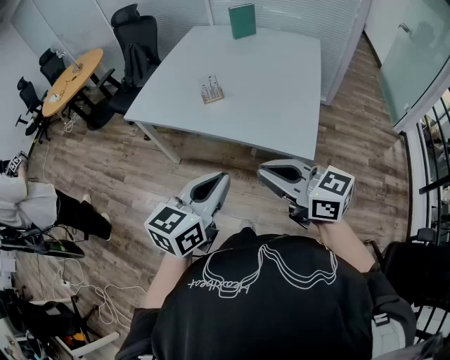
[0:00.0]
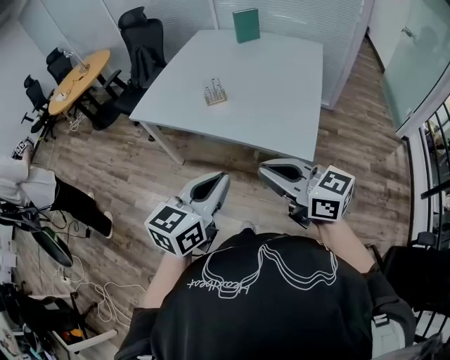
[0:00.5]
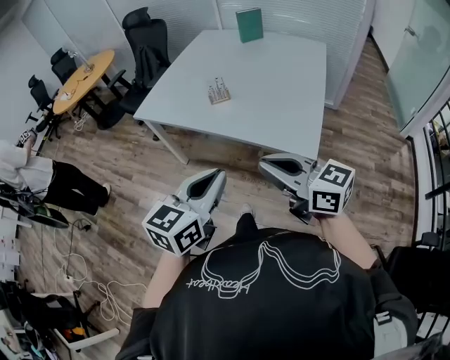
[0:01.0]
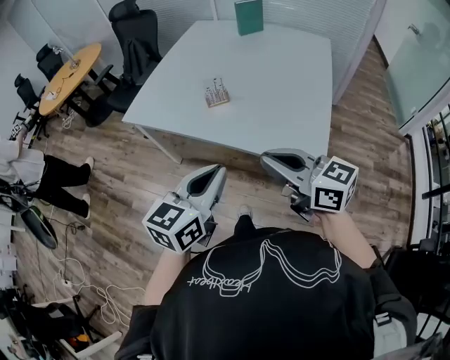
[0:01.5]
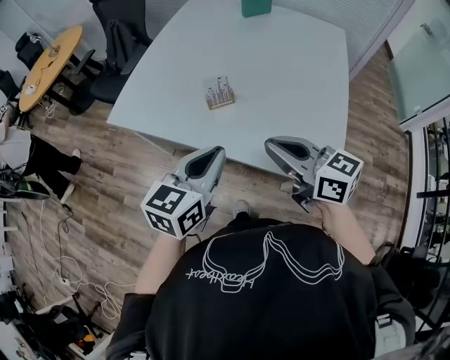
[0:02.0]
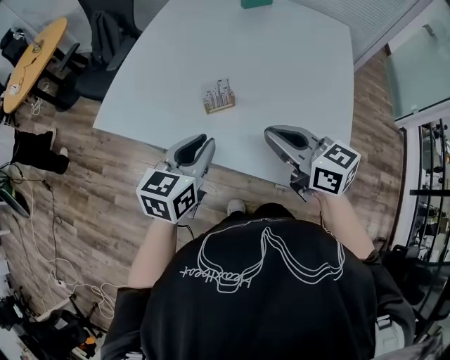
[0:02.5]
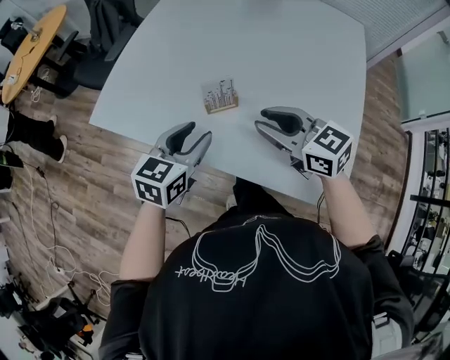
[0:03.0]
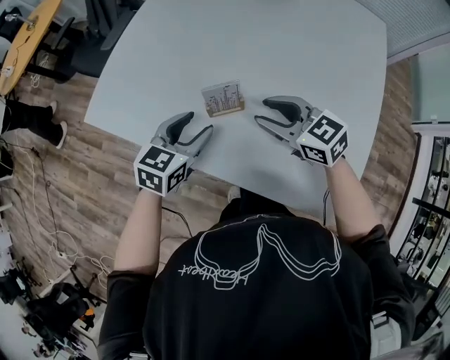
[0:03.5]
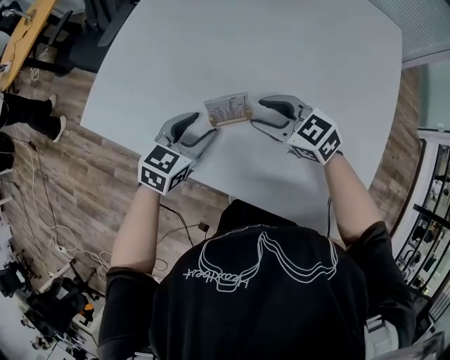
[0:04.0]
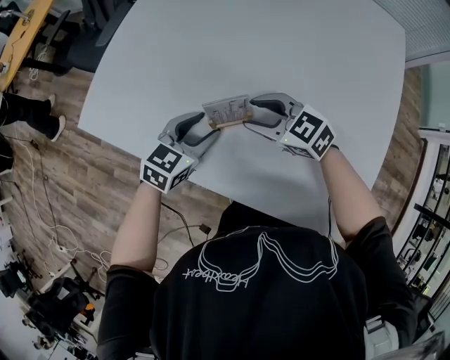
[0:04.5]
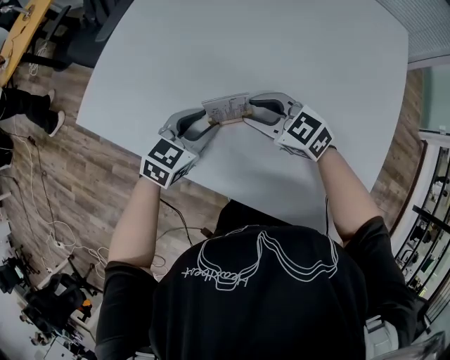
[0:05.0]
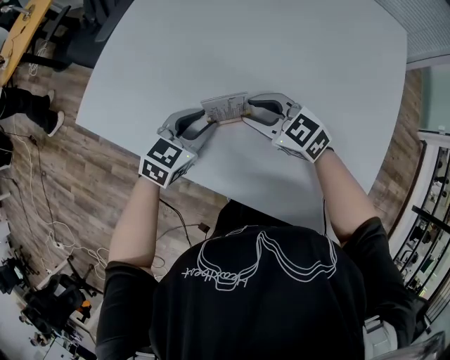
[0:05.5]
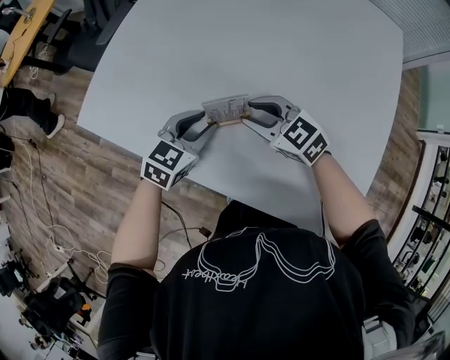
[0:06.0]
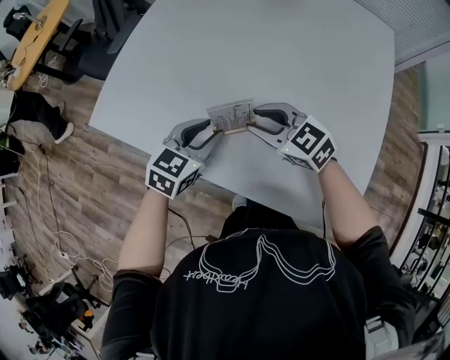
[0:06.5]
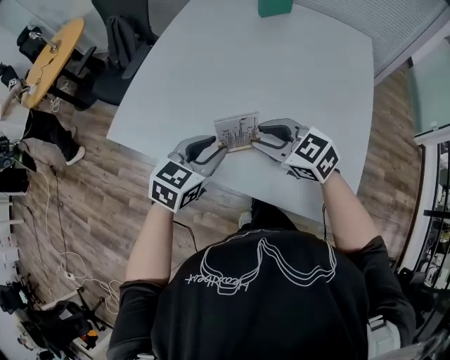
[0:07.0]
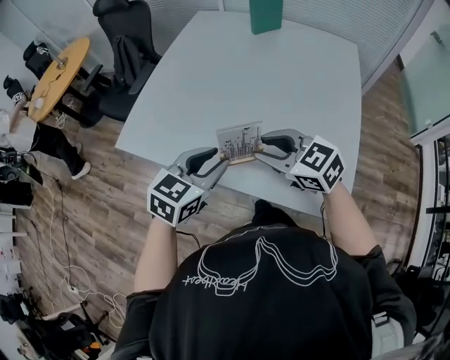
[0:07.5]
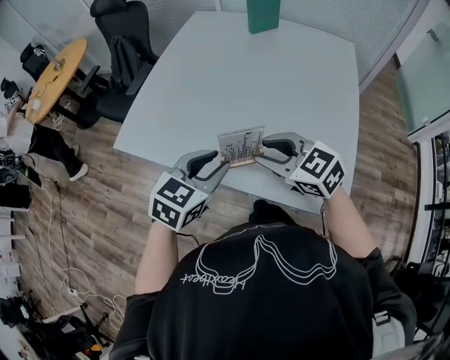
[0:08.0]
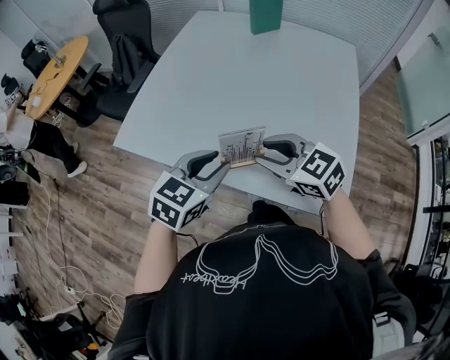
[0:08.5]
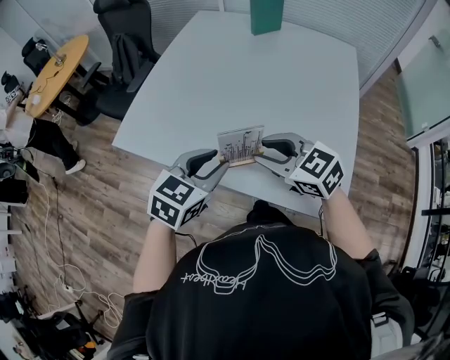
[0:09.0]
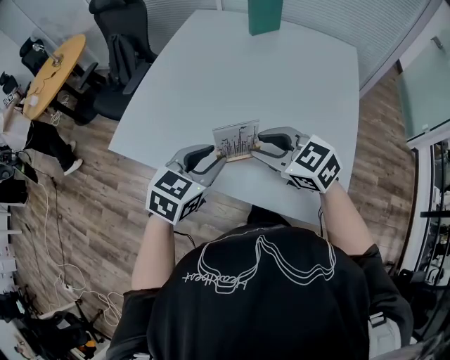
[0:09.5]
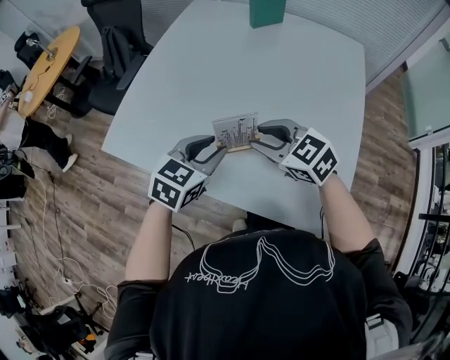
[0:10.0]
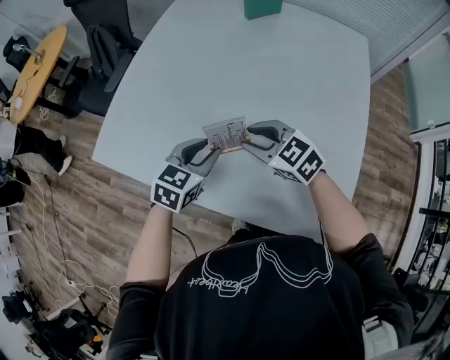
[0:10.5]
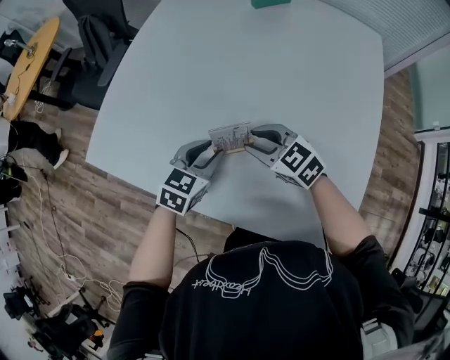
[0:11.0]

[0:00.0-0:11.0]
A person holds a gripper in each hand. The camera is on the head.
0:00.0 to 0:02.0: Both grippers travel together forward, about 25 cm.
0:02.0 to 0:03.5: The grippers both shift forward and downward by about 30 cm. The left gripper opens. Meanwhile the right gripper rotates some 30 degrees, and opens its fingers.
0:03.5 to 0:05.5: The left gripper shifts approximately 5 cm downward. The right gripper moves downward and forward, some 10 cm.
0:05.5 to 0:07.5: Both grippers travel together upward and backward, some 25 cm.
0:07.5 to 0:09.0: Both grippers stay about where they are.
0:09.0 to 0:11.0: The two grippers go some 25 cm forward and downward.

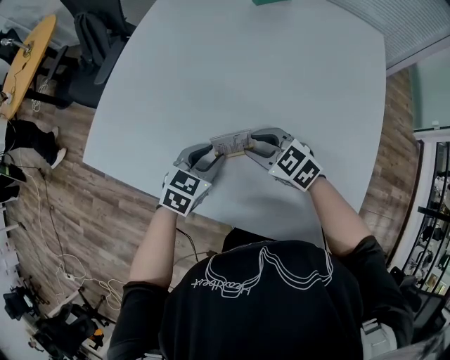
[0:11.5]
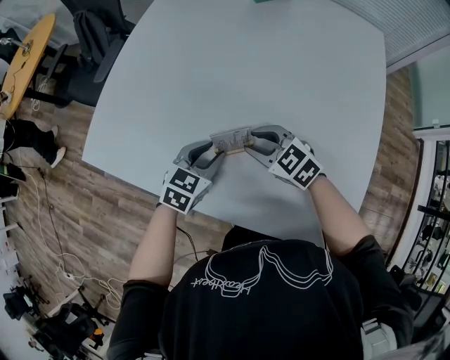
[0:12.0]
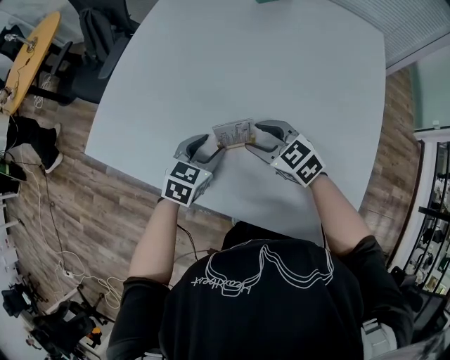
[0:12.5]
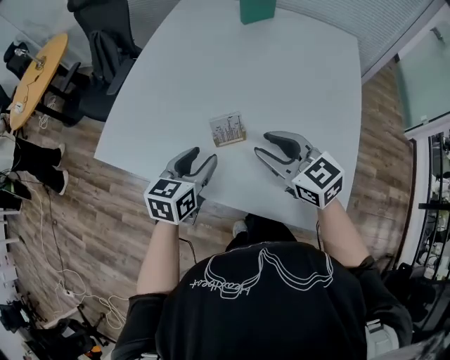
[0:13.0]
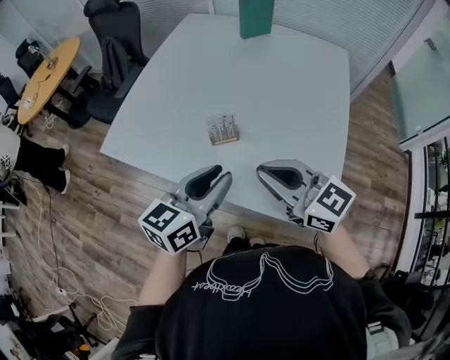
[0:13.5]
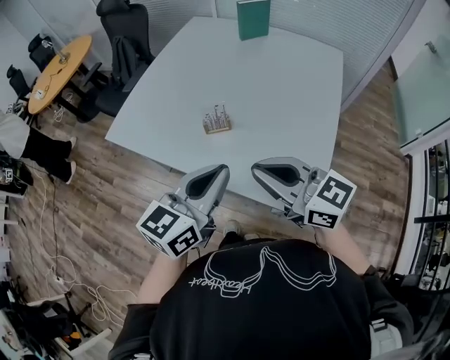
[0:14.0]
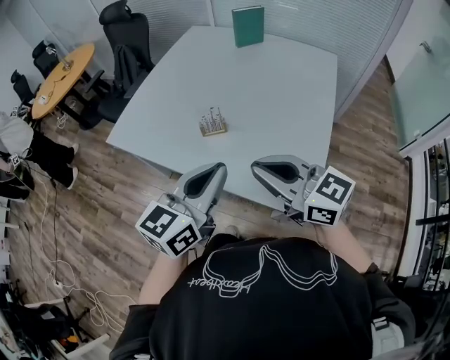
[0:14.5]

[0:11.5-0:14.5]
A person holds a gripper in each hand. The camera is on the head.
0:11.5 to 0:13.0: The two grippers go roughly 15 cm upward and backward. The left gripper rotates about 20 degrees. Meanwhile the right gripper turns by approximately 20 degrees.
0:13.0 to 0:14.5: The right gripper moves backward and upward, some 25 cm, turns by about 20 degrees, and closes, while the left gripper heads backward, upward and to the right, covering approximately 30 cm, rotates about 20 degrees, and closes.

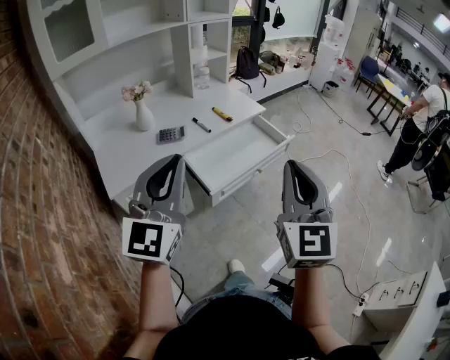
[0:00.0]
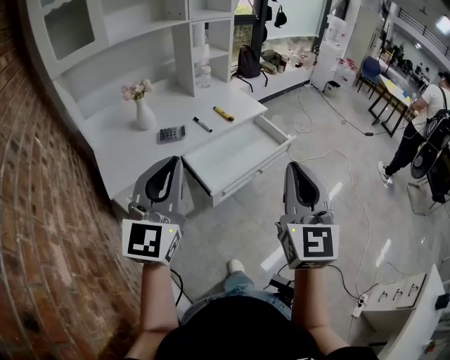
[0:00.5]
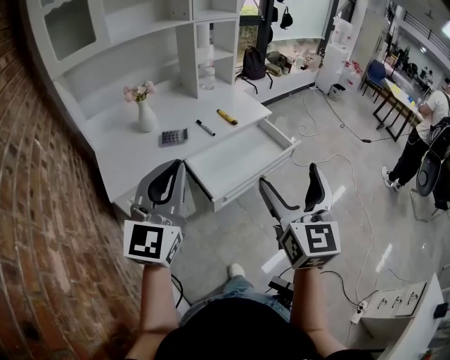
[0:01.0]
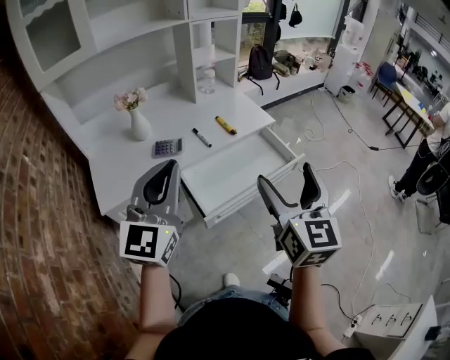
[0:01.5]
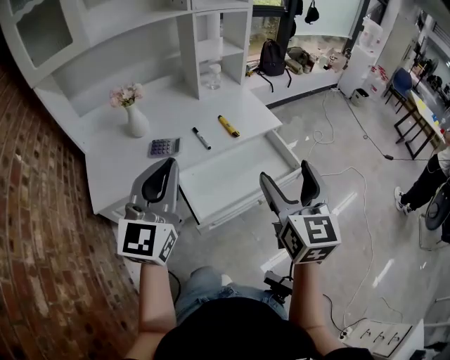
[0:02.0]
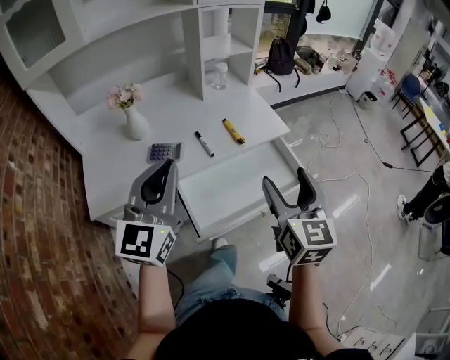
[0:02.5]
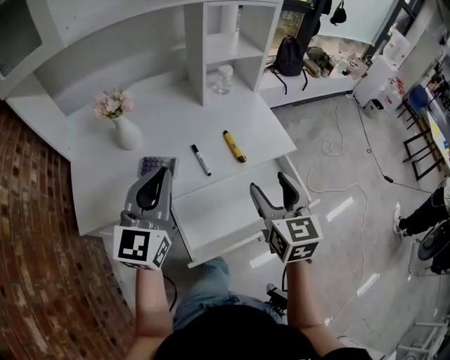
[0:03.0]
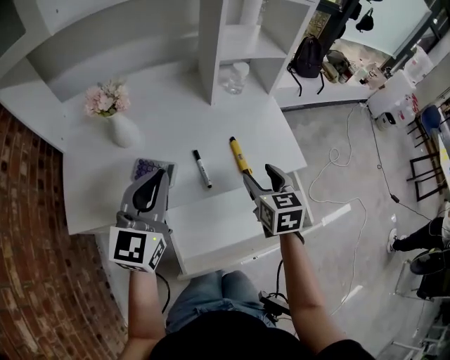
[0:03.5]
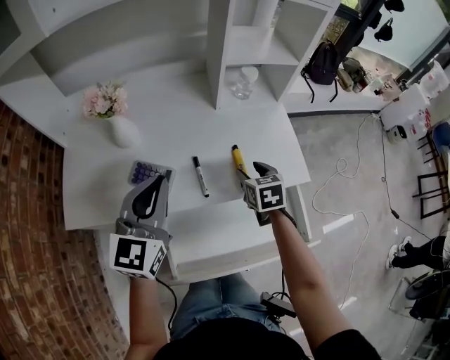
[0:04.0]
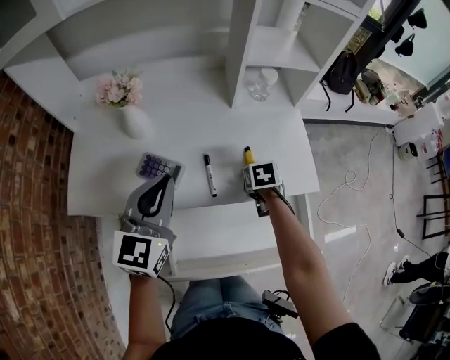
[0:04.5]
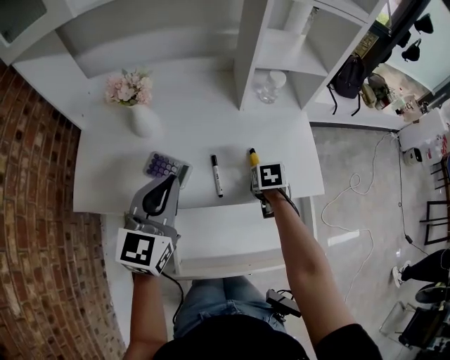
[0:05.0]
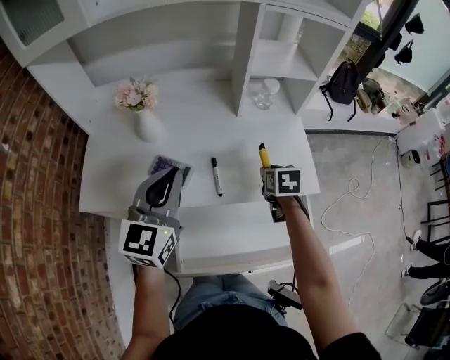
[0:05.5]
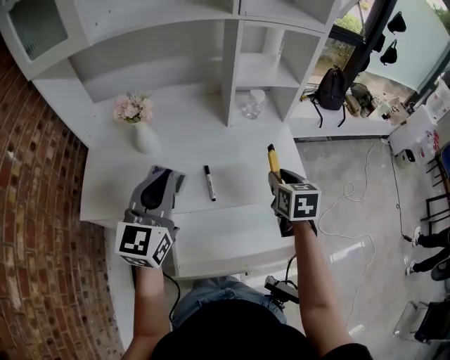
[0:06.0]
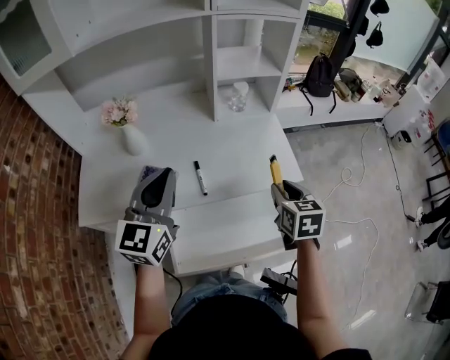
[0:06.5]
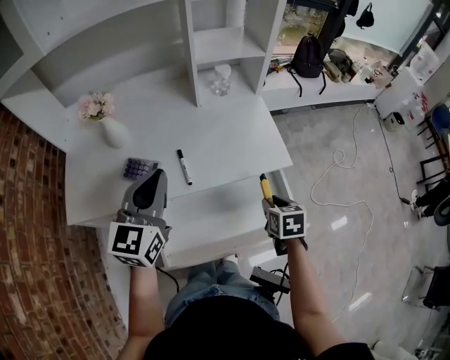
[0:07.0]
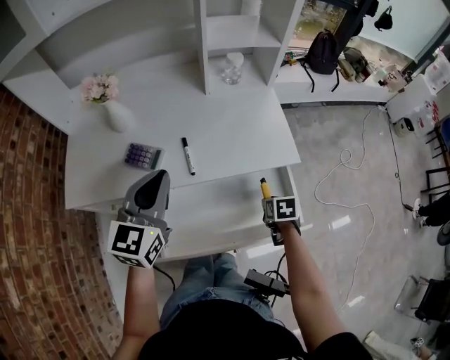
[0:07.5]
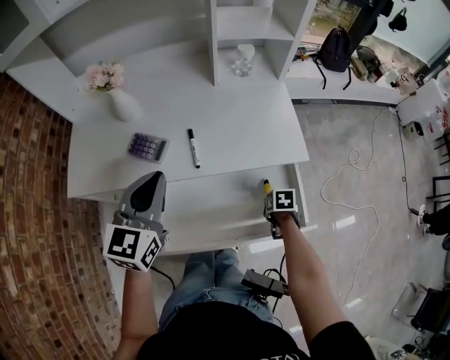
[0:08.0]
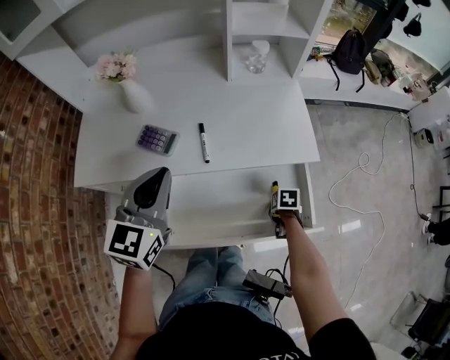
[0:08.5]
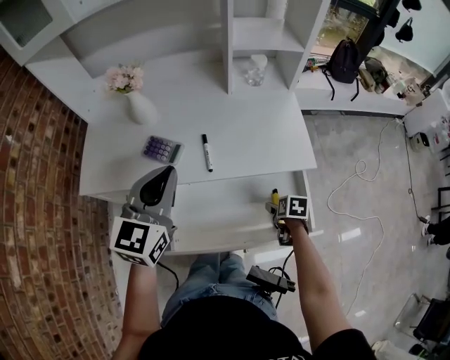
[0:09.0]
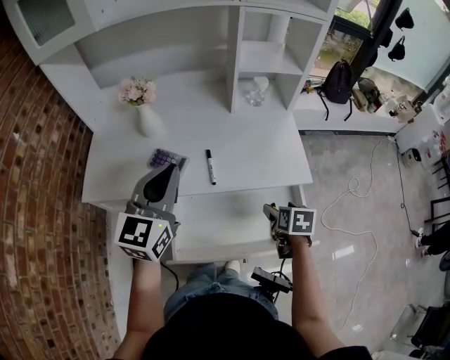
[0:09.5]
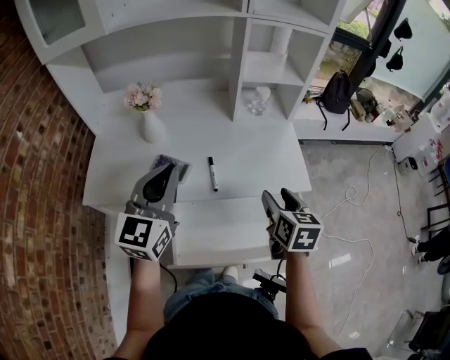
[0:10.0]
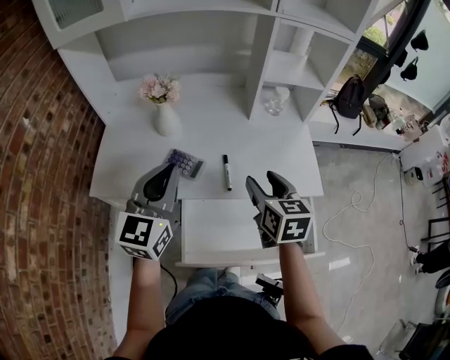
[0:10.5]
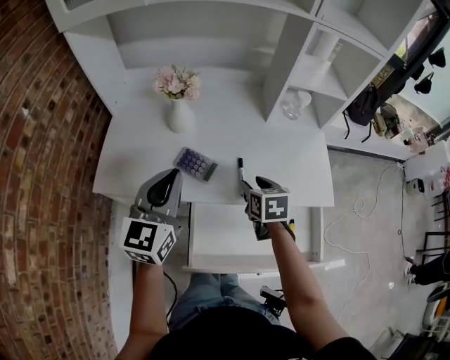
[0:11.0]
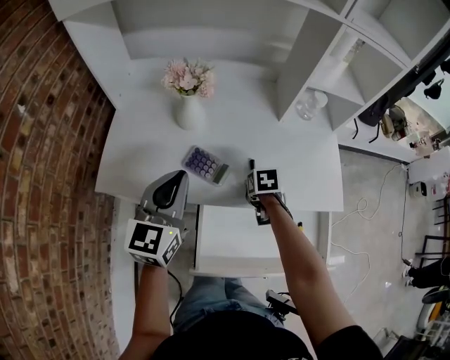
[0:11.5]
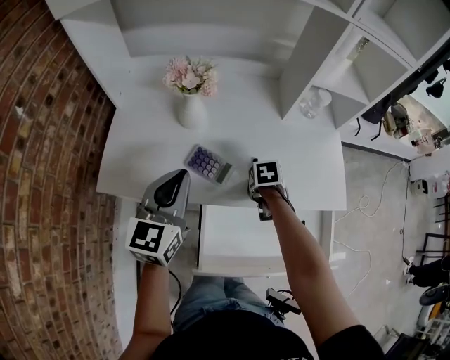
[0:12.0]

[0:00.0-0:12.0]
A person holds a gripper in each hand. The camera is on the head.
0:00.0 to 0:02.0: Both grippers travel together forward, roughly 20 cm. The right gripper changes its angle by approximately 20 degrees, and opens up.
0:02.0 to 0:04.0: The right gripper travels forward and downward by some 50 cm, tilts its fingers roughly 40 degrees downward, and closes its fingers, while the left gripper heads forward and downward, covering roughly 30 cm, and turns by roughly 20 degrees.
0:04.0 to 0:06.0: The right gripper is displaced upward and to the right by about 15 cm; the left gripper shifts roughly 5 cm upward.
0:06.0 to 0:08.0: The right gripper shifts approximately 30 cm downward and backward, and points its fingers some 40 degrees further downward; the left gripper shifts about 10 cm downward.
0:08.0 to 0:10.0: The right gripper goes approximately 30 cm upward, points its fingers about 40 degrees further upward, and opens and closes again; the left gripper moves upward, about 10 cm.
0:10.0 to 0:12.0: The right gripper moves about 30 cm, and tilts its fingers some 40 degrees downward. Meanwhile the left gripper shifts by approximately 15 cm.
